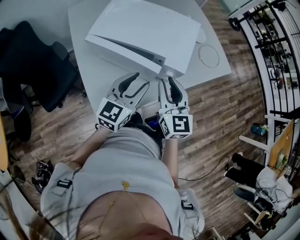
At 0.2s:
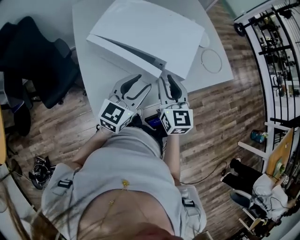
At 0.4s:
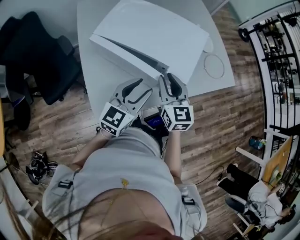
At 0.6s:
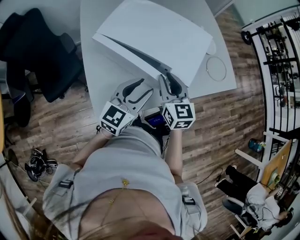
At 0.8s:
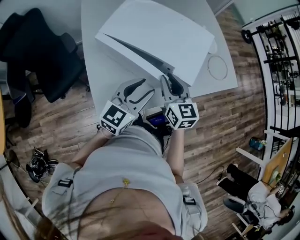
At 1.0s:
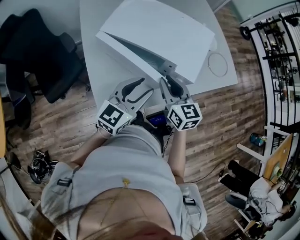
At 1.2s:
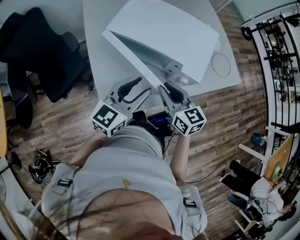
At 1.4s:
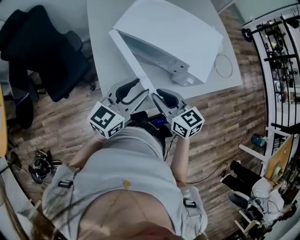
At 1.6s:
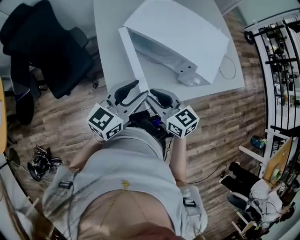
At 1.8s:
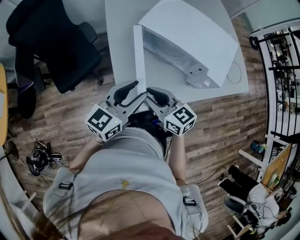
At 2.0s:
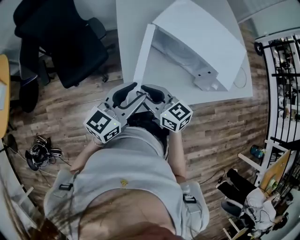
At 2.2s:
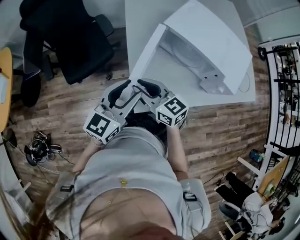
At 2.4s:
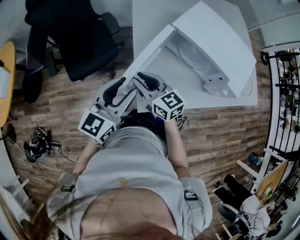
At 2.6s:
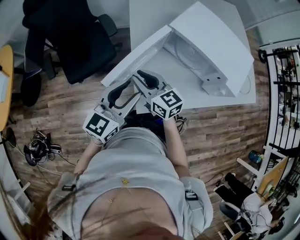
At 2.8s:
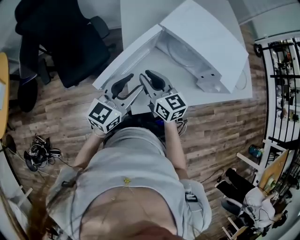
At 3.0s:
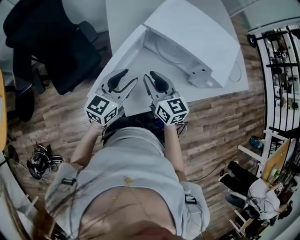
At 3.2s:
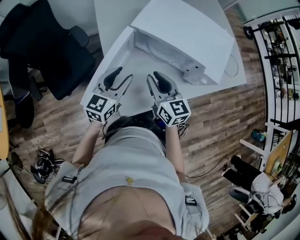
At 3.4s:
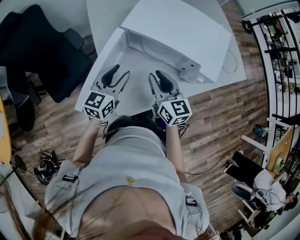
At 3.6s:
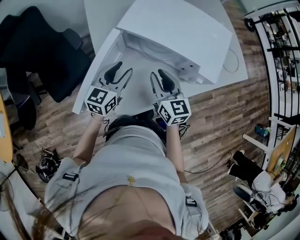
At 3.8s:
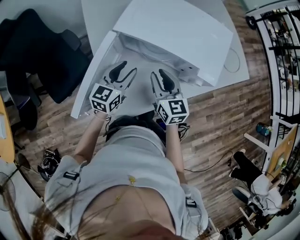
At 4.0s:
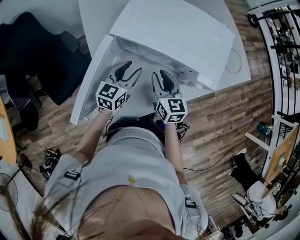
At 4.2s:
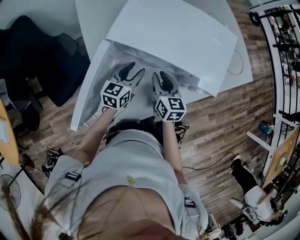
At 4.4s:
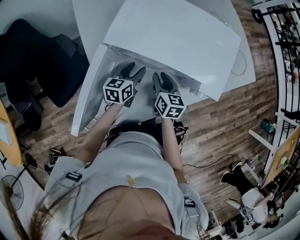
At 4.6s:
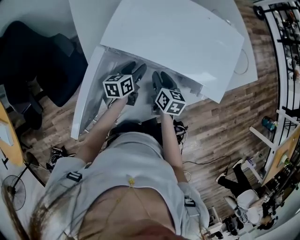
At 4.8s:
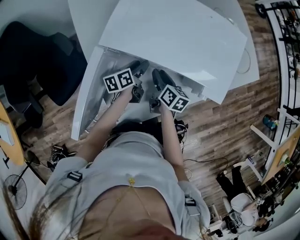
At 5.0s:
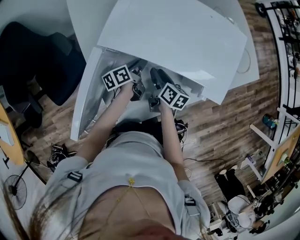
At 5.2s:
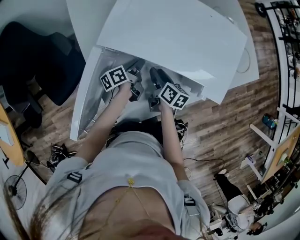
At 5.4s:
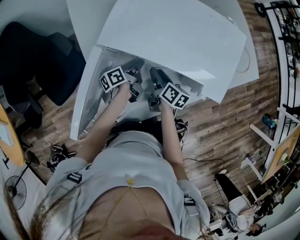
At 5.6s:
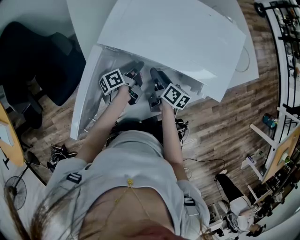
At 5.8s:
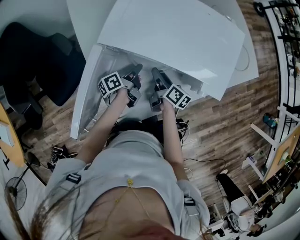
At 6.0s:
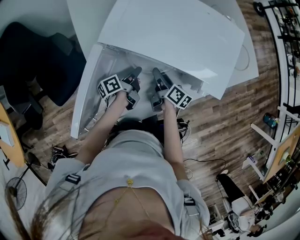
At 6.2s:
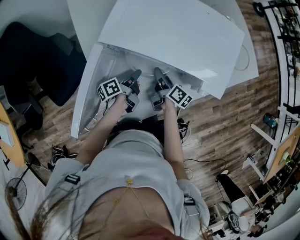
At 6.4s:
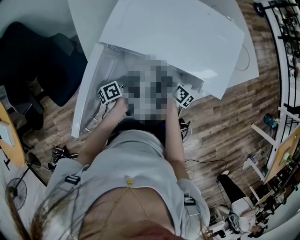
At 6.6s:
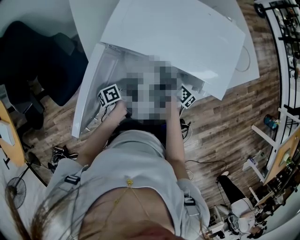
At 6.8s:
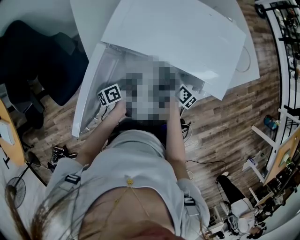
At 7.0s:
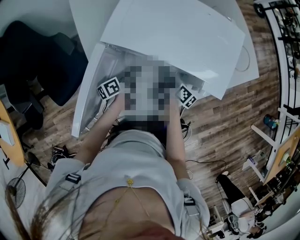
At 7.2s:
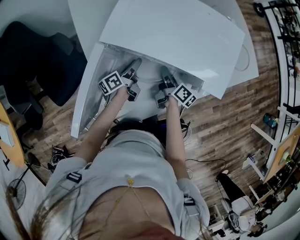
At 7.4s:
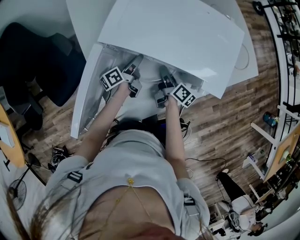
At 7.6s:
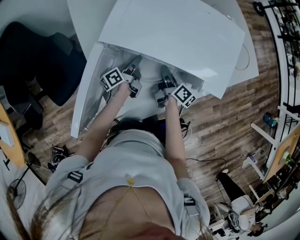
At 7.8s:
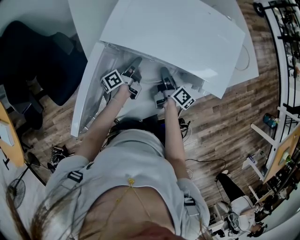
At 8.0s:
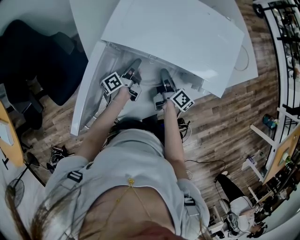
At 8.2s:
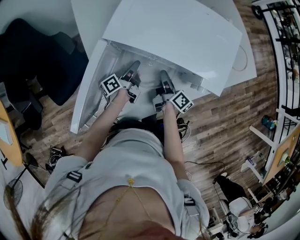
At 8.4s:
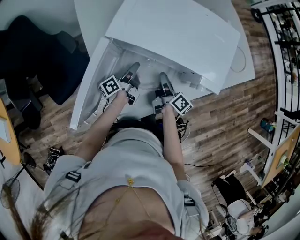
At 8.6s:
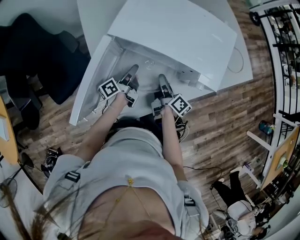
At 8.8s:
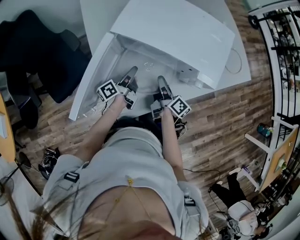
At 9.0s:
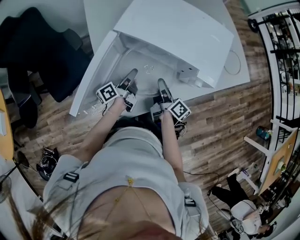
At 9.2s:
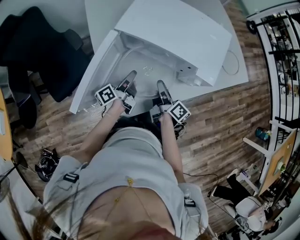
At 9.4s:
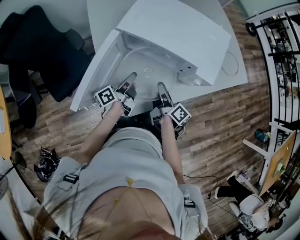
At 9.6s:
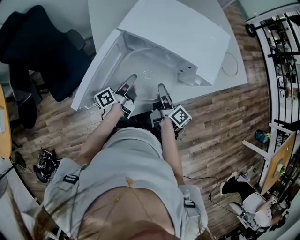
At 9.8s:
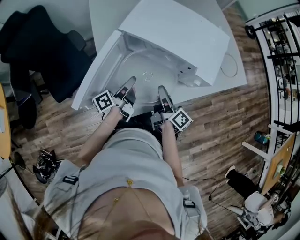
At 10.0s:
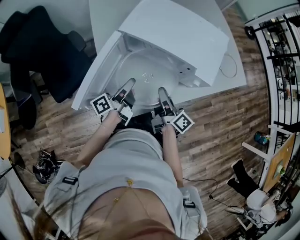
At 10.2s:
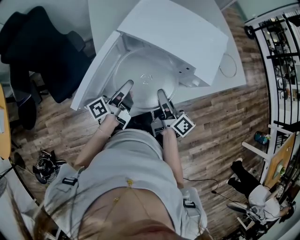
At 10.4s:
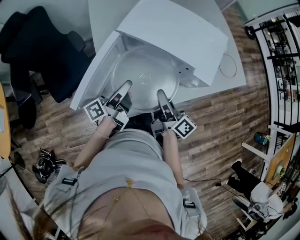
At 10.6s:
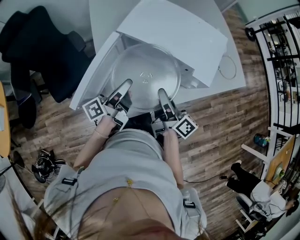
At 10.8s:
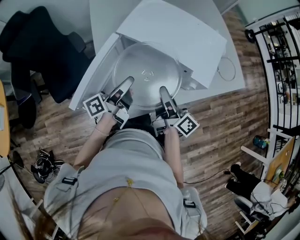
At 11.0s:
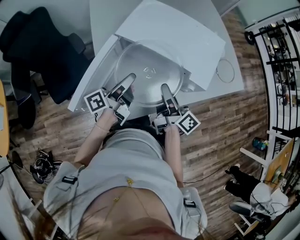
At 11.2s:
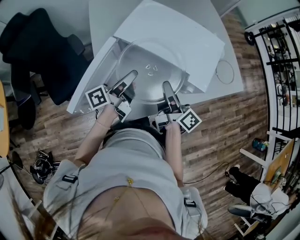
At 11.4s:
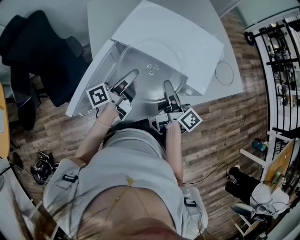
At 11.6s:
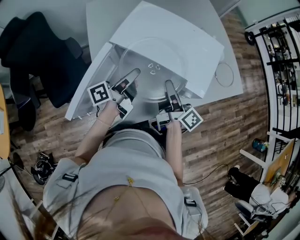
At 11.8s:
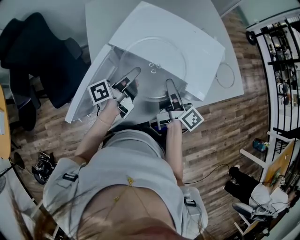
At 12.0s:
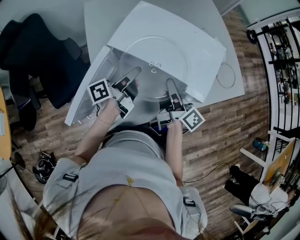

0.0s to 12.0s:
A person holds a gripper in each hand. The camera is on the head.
0.0s to 1.6s: Both grippers travel together to the left, some 15 cm. The right gripper changes its angle by about 40 degrees.
1.6s to 3.0s: The left gripper is displaced to the left and forward by approximately 10 cm; the right gripper heads forward, covering roughly 10 cm, and reaches approximately 20 cm to the left, then returns.
3.0s to 4.4s: The right gripper is displaced downward, to the right and forward by roughly 20 cm, and rotates some 30 degrees. Meanwhile the left gripper moves downward, forward and to the right, roughly 25 cm, and swivels about 30 degrees.
4.4s to 6.0s: The two grippers go about 5 cm downward. The left gripper twists roughly 50 degrees counterclockwise, seen from behind, and closes, while the right gripper turns by approximately 40 degrees.
6.0s to 7.6s: The left gripper opens, then closes once more. The right gripper closes up.
7.6s to 9.0s: The left gripper goes some 10 cm backward and upward, while the right gripper moves upward and backward, about 10 cm.
9.0s to 10.4s: Both grippers travel together upward and backward, some 15 cm.
10.4s to 12.0s: Both grippers travel together forward, approximately 10 cm.

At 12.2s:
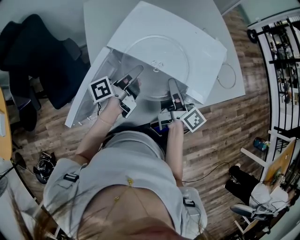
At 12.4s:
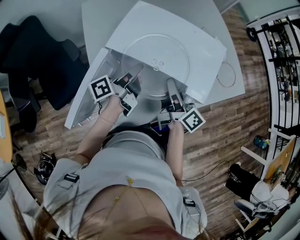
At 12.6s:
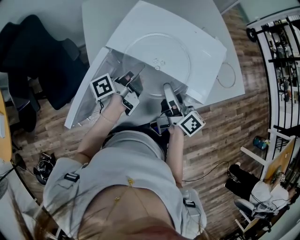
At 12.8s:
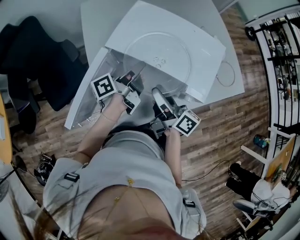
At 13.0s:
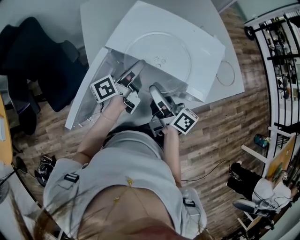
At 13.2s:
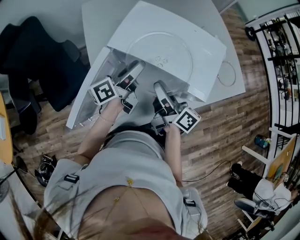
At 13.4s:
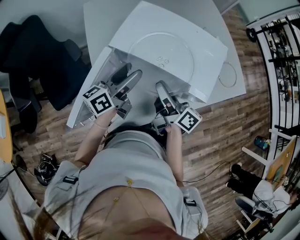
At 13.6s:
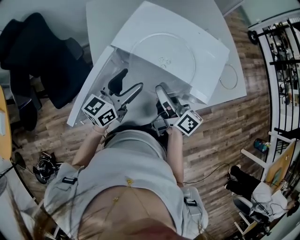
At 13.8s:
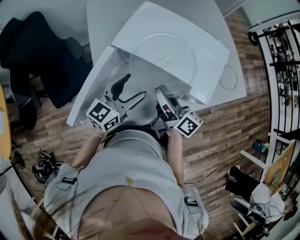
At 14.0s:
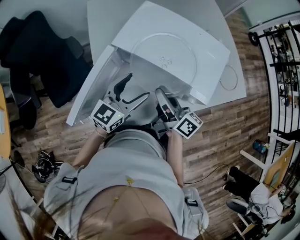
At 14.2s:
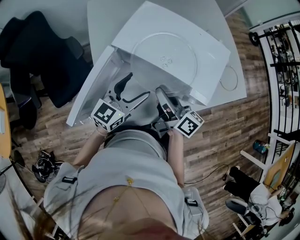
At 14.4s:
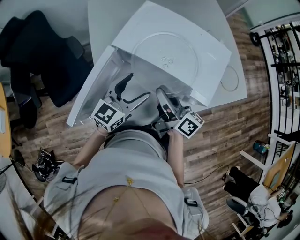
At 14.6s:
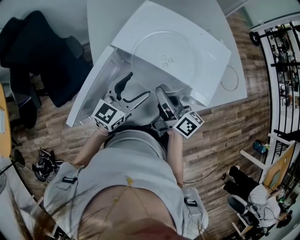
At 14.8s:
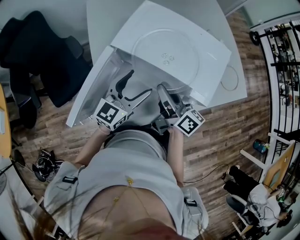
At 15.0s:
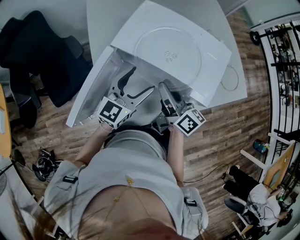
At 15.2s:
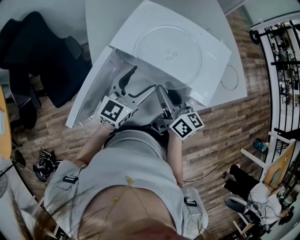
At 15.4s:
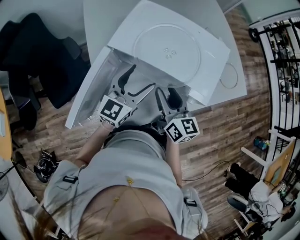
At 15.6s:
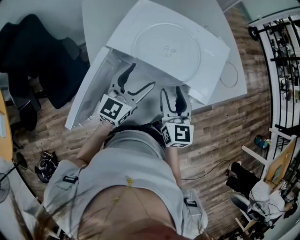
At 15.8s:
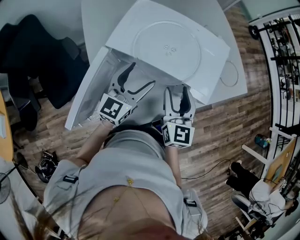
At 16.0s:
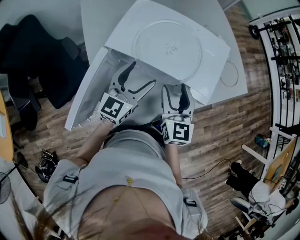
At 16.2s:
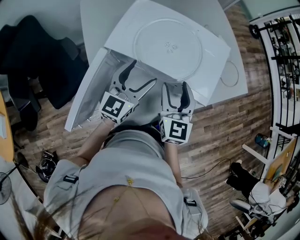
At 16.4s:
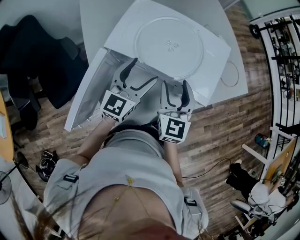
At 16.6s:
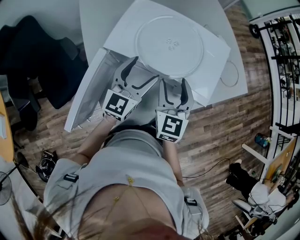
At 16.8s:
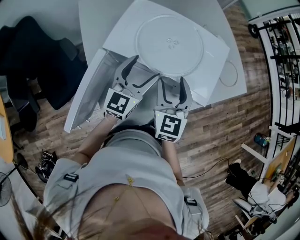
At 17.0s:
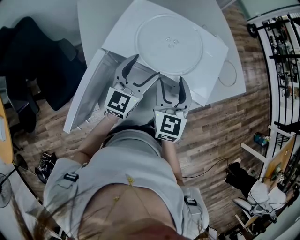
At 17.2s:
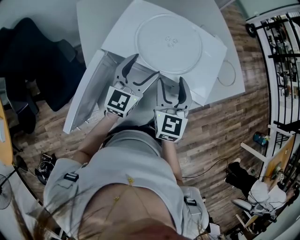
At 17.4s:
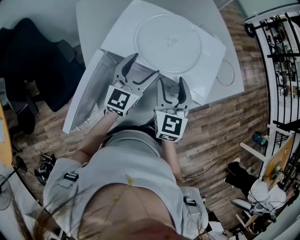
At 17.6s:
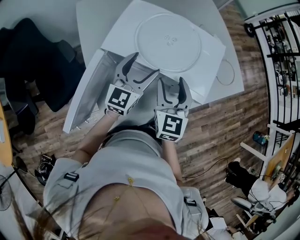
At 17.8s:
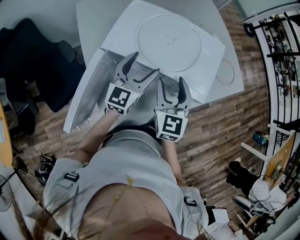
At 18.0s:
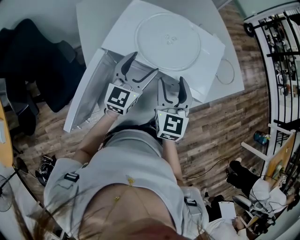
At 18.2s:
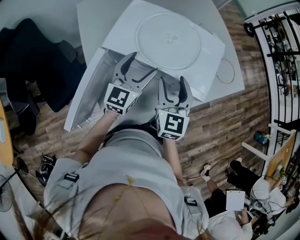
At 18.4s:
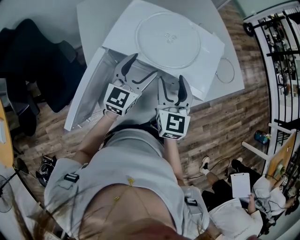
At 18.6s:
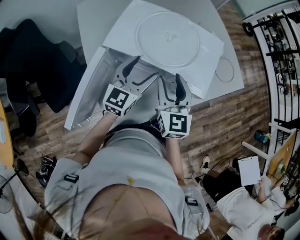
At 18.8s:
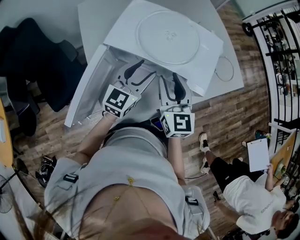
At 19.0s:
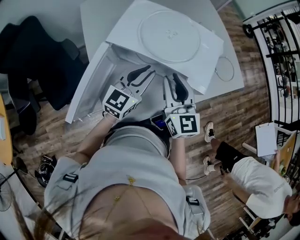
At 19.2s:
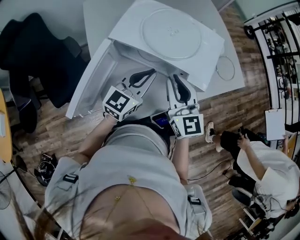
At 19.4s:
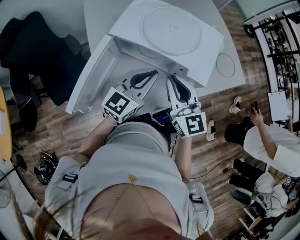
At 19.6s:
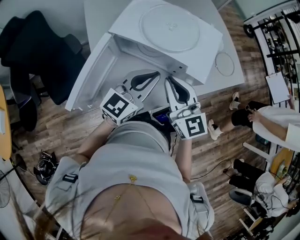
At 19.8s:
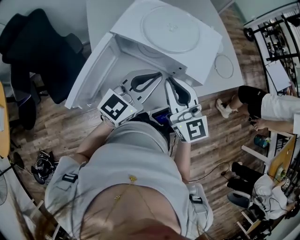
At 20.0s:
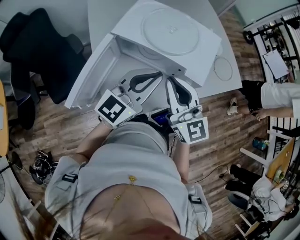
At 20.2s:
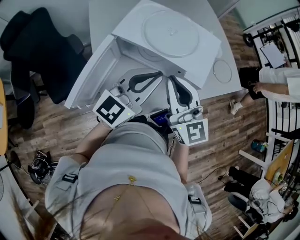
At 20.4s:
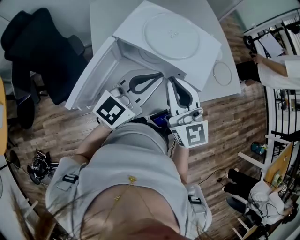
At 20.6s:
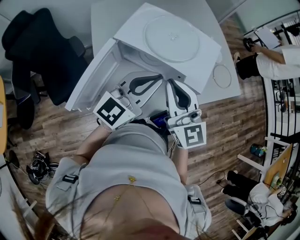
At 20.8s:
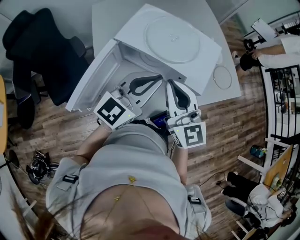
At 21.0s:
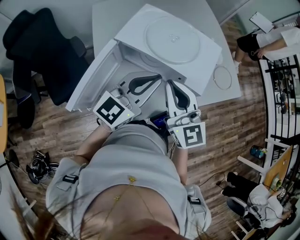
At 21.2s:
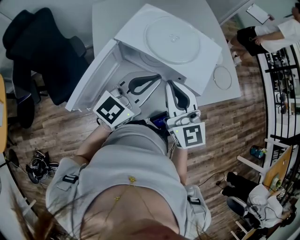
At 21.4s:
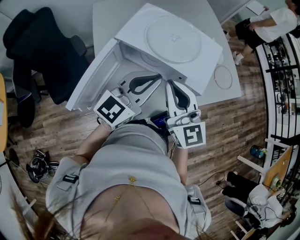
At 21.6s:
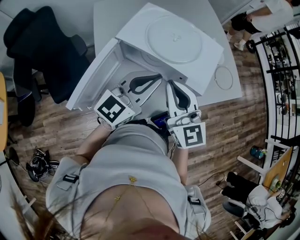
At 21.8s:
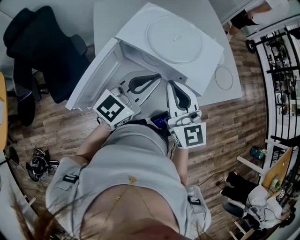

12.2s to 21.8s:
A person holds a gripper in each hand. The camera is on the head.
12.2s to 13.8s: The right gripper is displaced to the left by roughly 5 cm, and opens its fingers; the left gripper is displaced backward by approximately 5 cm, twists some 60 degrees clockwise, seen from behind, and opens up.
13.8s to 15.4s: The right gripper rotates about 40 degrees.
15.4s to 17.0s: The right gripper rotates roughly 40 degrees; the left gripper changes place by some 5 cm.
17.0s to 18.6s: The grippers move only a little.
18.6s to 20.2s: Both grippers move upward and backward, about 15 cm. The left gripper closes; the right gripper turns by approximately 30 degrees, and closes.
20.2s to 21.8s: The grippers stay close to where they were, moving slightly.

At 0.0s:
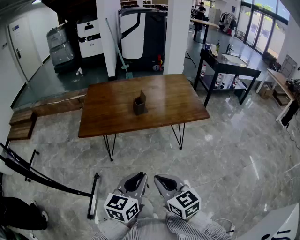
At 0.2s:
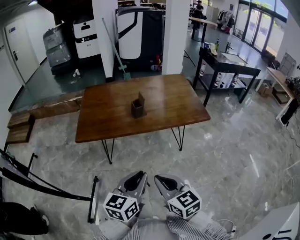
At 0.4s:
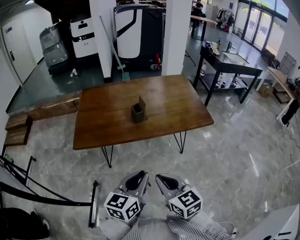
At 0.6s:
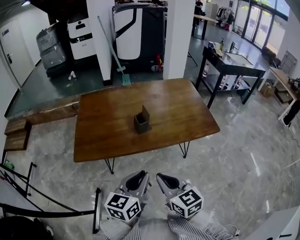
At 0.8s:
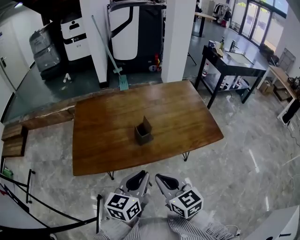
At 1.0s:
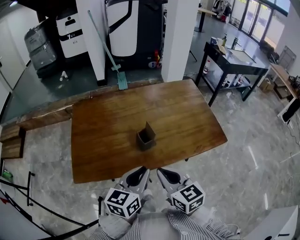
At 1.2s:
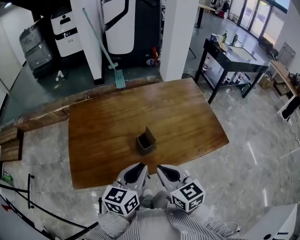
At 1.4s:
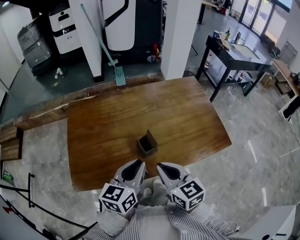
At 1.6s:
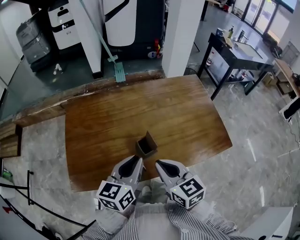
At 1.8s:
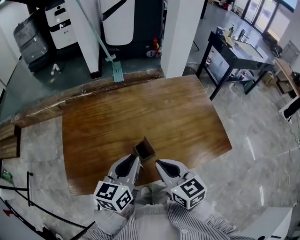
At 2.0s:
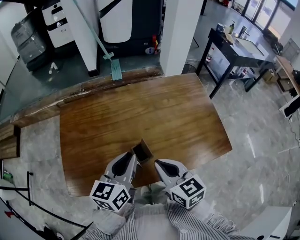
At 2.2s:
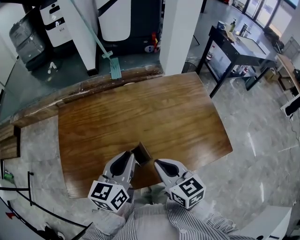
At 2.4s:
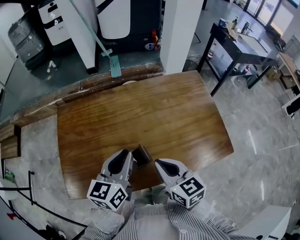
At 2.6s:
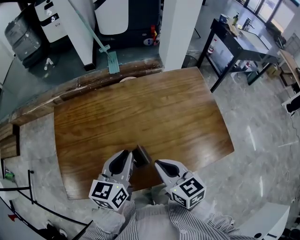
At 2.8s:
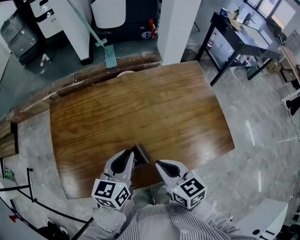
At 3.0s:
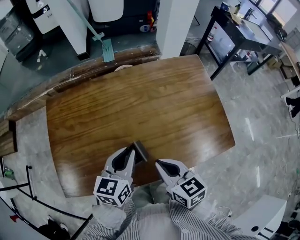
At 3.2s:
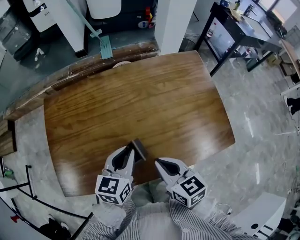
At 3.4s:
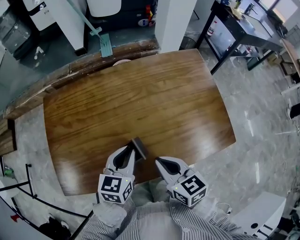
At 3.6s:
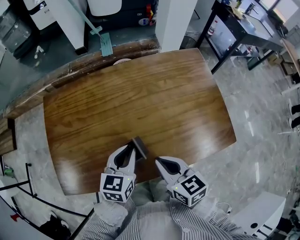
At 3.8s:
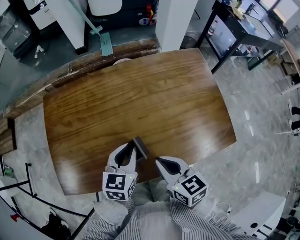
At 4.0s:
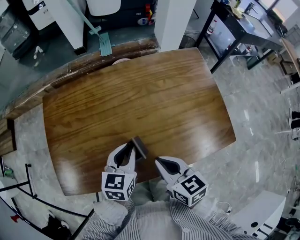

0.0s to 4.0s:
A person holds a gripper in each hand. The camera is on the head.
0.0s to 1.4s: Both grippers are carried forward, about 40 cm.
1.4s to 2.6s: Both grippers move forward, roughly 10 cm.
2.6s to 4.0s: The left gripper goes roughly 10 cm downward.
